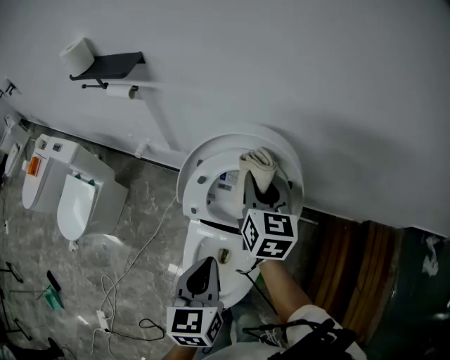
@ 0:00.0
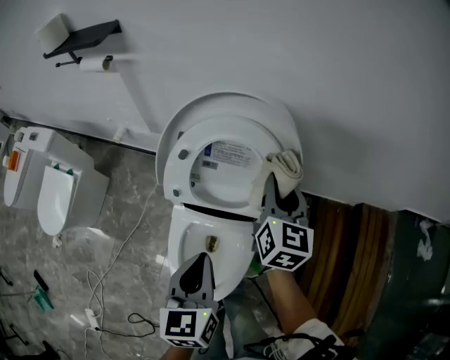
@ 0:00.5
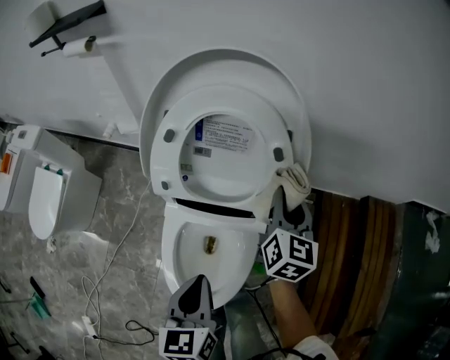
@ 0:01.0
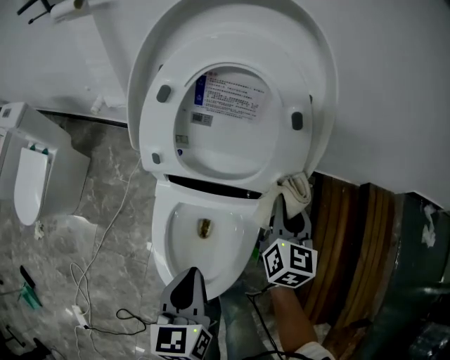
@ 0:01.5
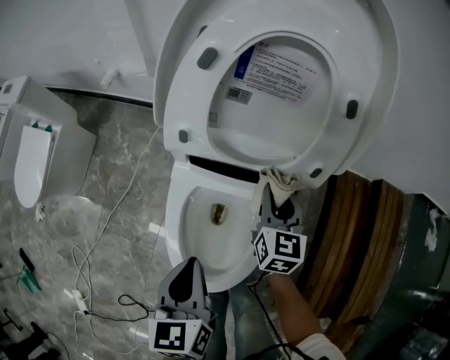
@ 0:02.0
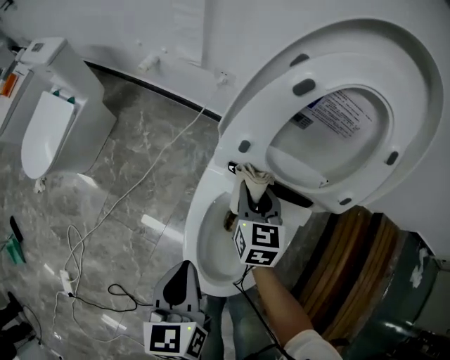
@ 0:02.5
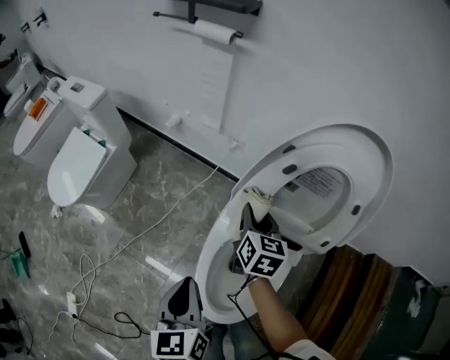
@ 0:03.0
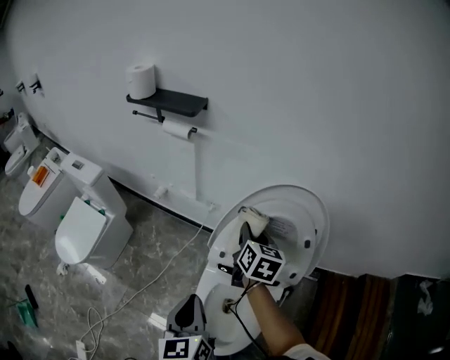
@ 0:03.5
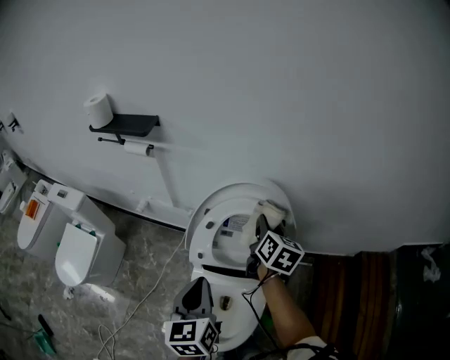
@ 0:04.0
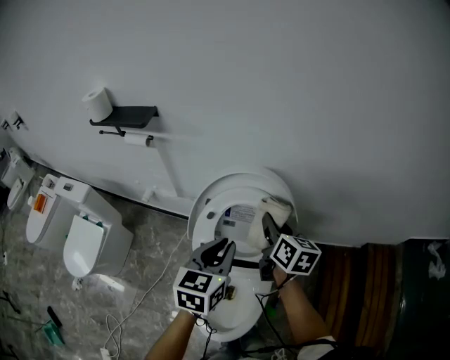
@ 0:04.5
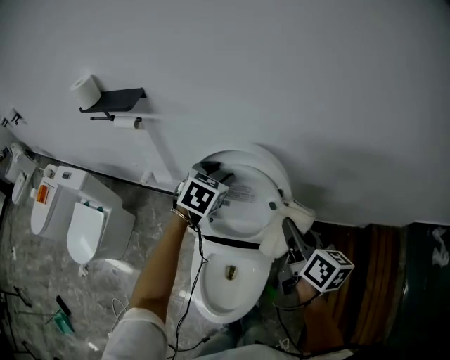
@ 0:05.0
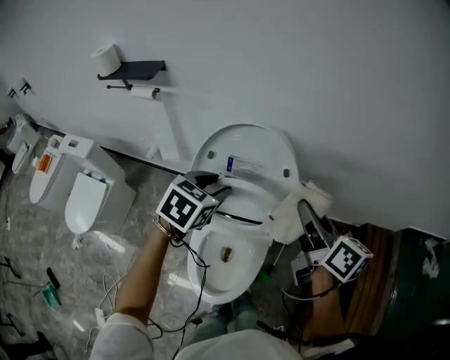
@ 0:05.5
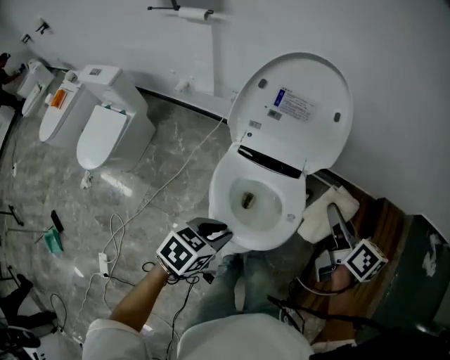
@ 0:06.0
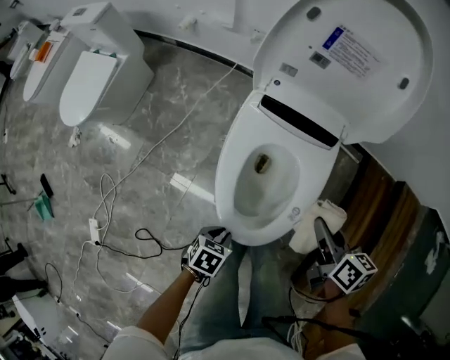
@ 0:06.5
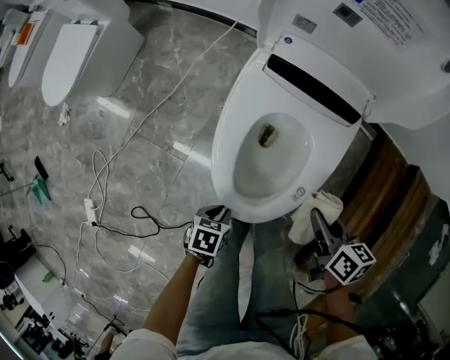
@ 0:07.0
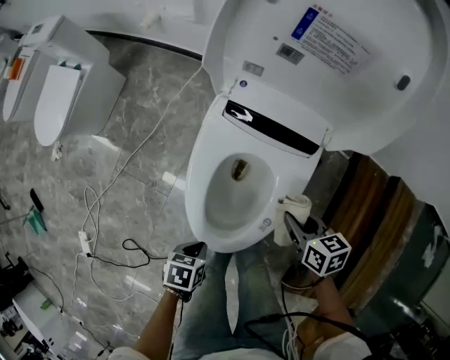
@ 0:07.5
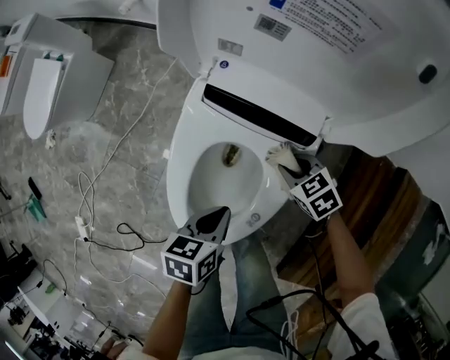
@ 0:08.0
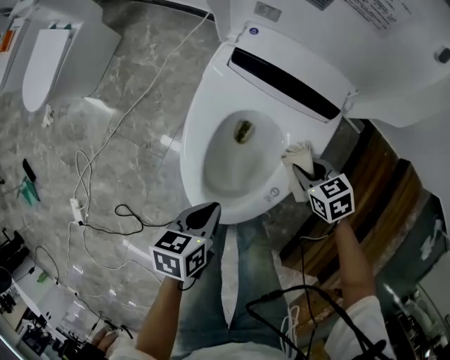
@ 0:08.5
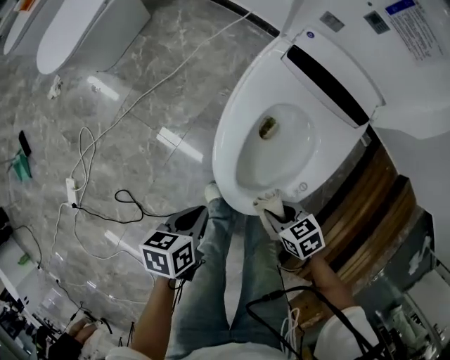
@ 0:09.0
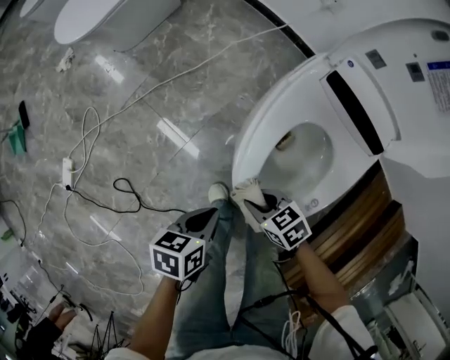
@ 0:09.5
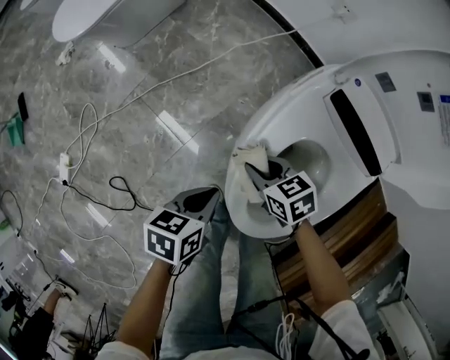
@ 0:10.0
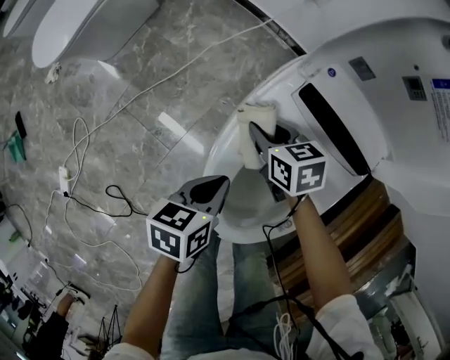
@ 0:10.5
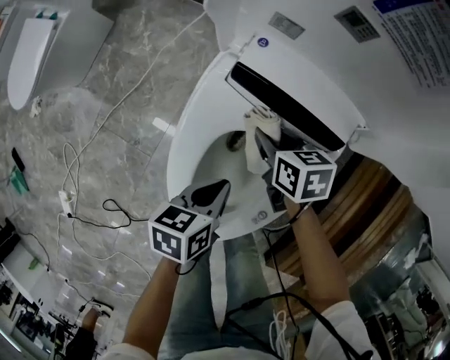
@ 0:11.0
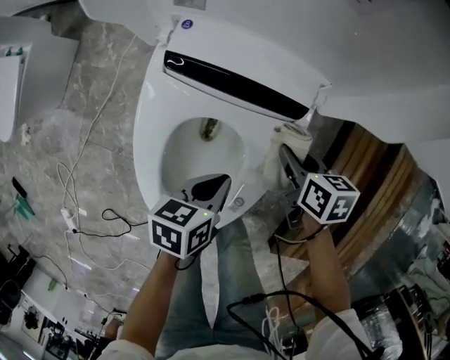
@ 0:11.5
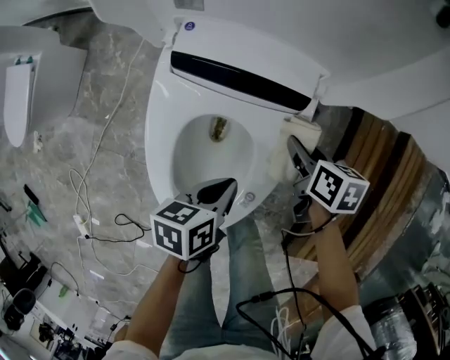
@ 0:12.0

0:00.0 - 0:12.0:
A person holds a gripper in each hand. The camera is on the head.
0:00.0 - 0:02.0: Both grippers travel together downward and backward, roughly 30 cm.
0:02.0 - 0:04.0: Both grippers move upward and forward, some 30 cm. The right gripper rotates approximately 30 degrees.
0:04.0 - 0:06.0: The right gripper moves backward, roughly 25 cm, and rotates some 30 degrees; the left gripper travels backward and downward by roughly 25 cm, points its fingers approximately 30 degrees further downward, and opens.
0:06.0 - 0:08.0: The left gripper moves downward, approximately 25 cm, turns by roughly 40 degrees, and closes its fingers. Meanwhile the right gripper is displaced downward by roughly 40 cm, and tilts its fingers about 40 degrees downward.
0:08.0 - 0:10.0: The left gripper ends up about 25 cm from where it was. Meanwhile the right gripper shifts by roughly 30 cm.
0:10.0 - 0:12.0: The right gripper ends up some 35 cm from where it was, and twists about 50 degrees clockwise, seen from behind. The left gripper shifts by roughly 25 cm, and swivels roughly 20 degrees.

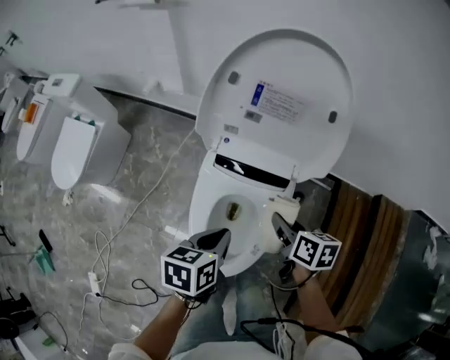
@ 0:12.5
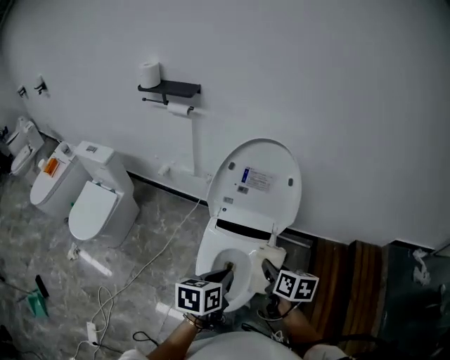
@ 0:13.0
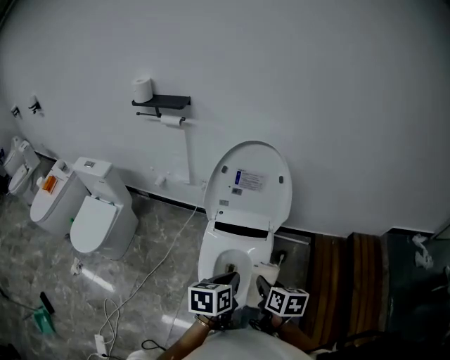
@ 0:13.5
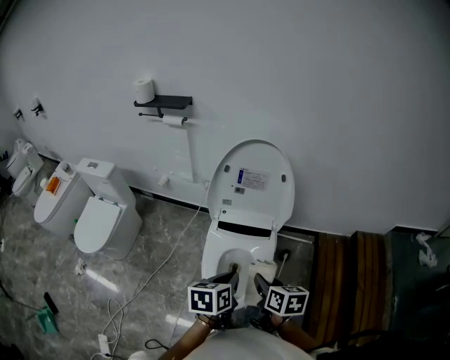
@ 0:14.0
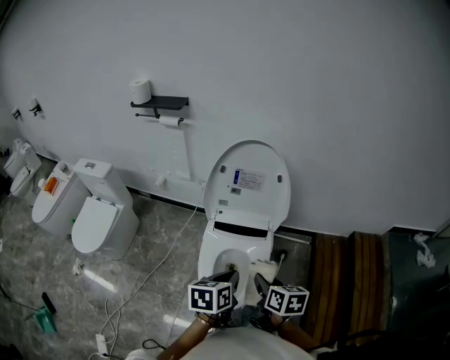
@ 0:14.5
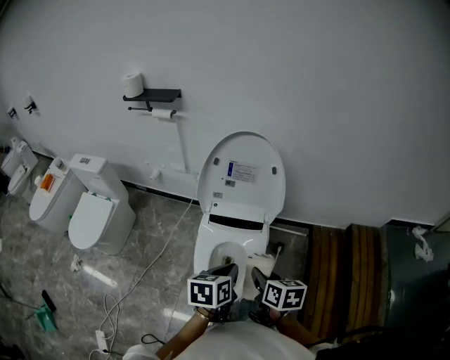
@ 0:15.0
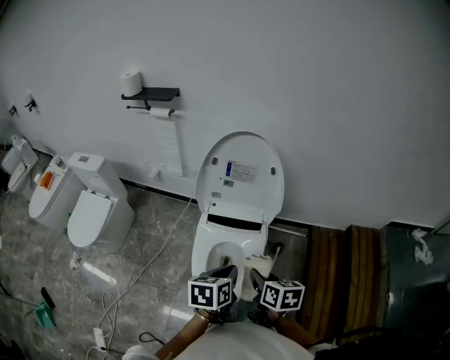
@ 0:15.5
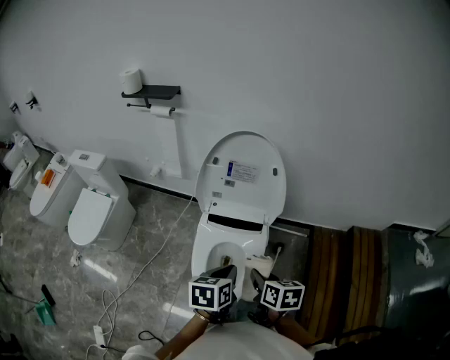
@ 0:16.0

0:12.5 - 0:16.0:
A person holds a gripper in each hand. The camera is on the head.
0:12.5 - 0:14.5: The left gripper moves upward and backward, approximately 20 cm, while the right gripper travels backward and upward by about 25 cm.
0:14.5 - 0:16.0: There are only small adjustments of the grippers.

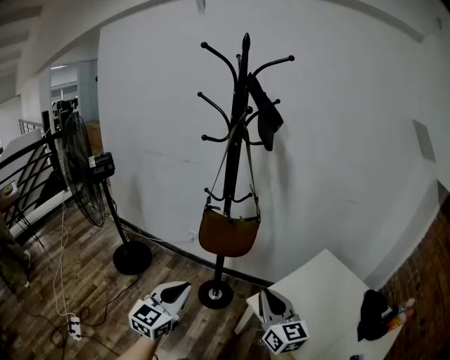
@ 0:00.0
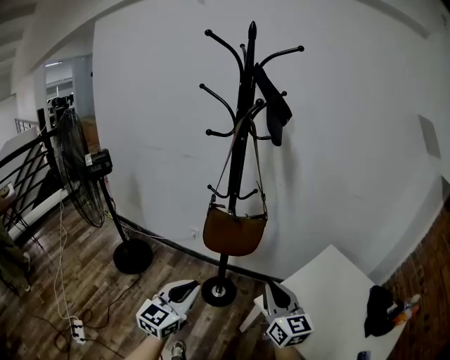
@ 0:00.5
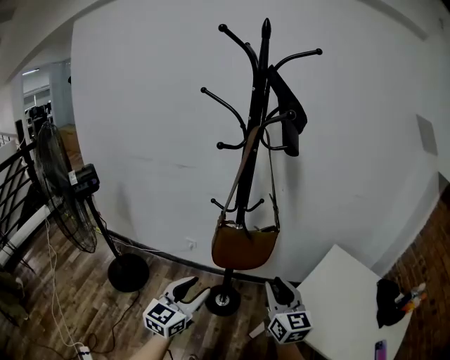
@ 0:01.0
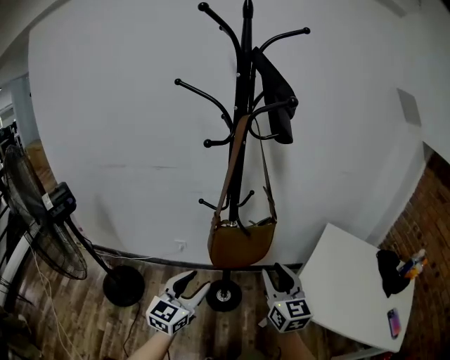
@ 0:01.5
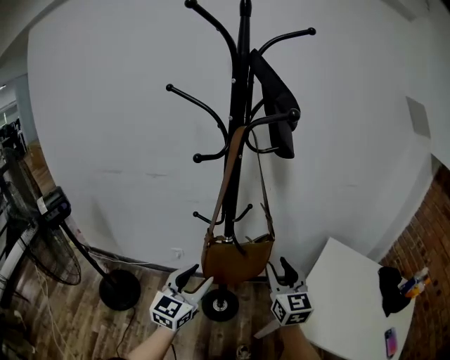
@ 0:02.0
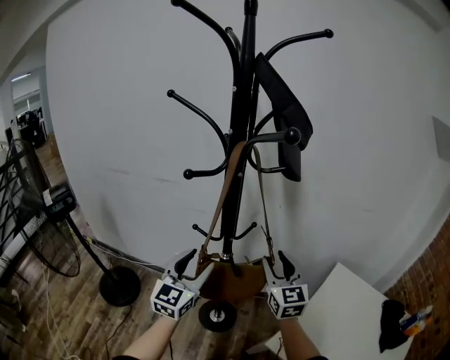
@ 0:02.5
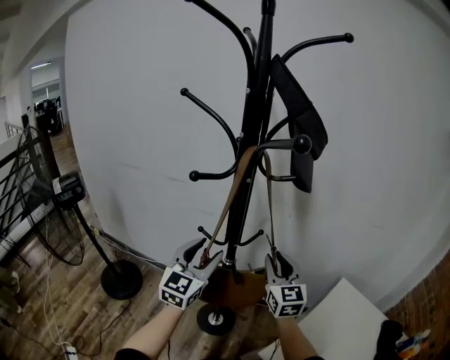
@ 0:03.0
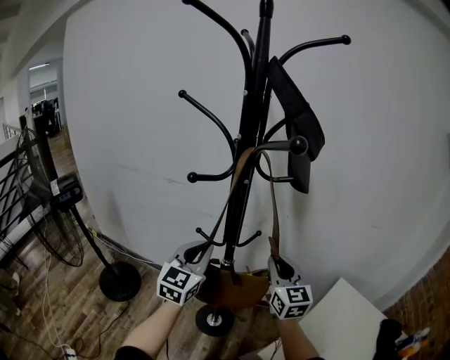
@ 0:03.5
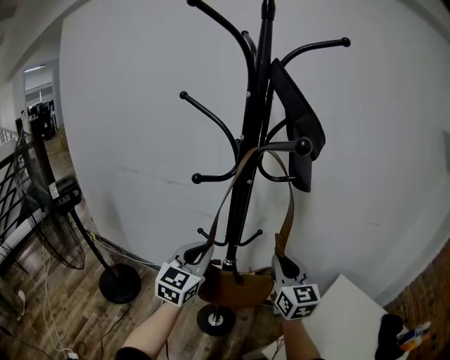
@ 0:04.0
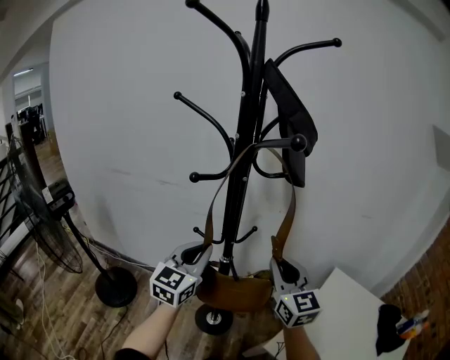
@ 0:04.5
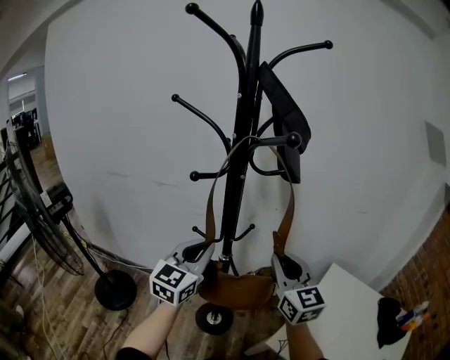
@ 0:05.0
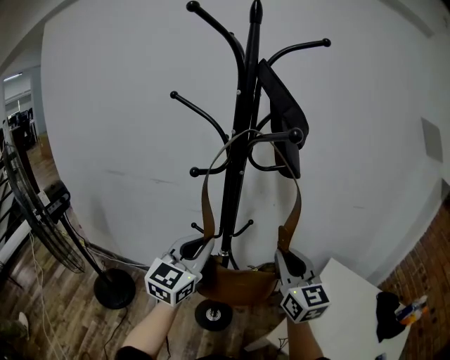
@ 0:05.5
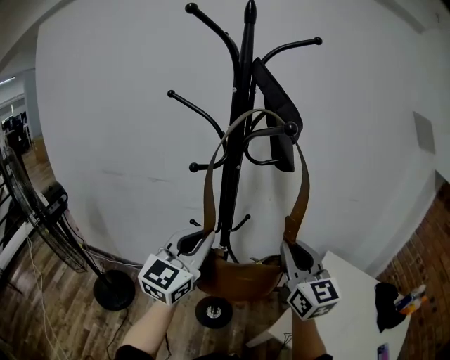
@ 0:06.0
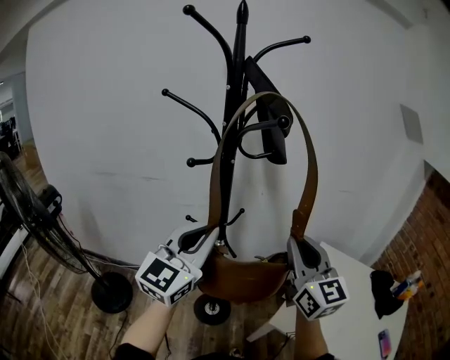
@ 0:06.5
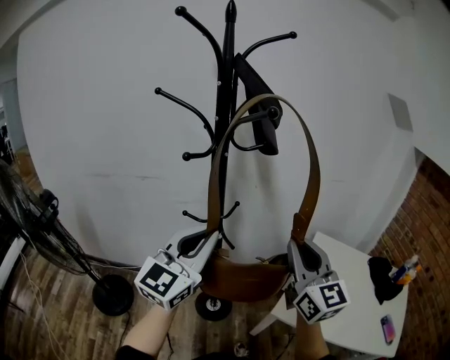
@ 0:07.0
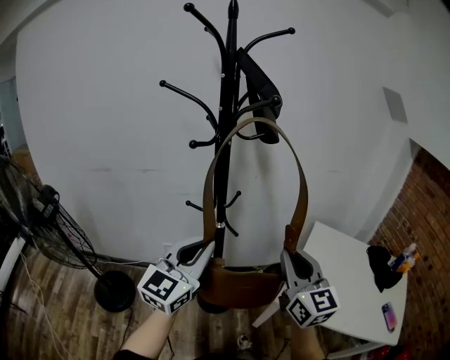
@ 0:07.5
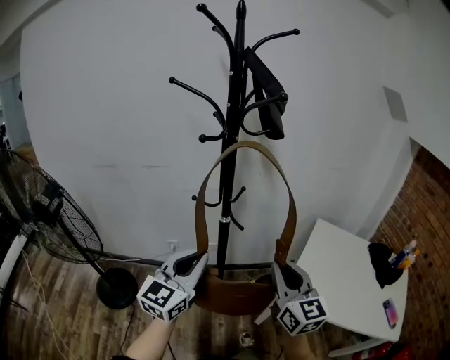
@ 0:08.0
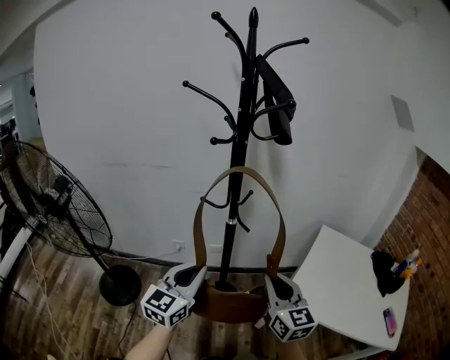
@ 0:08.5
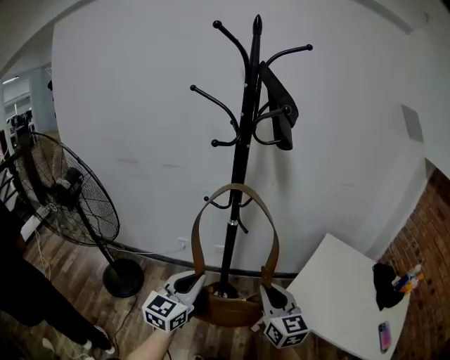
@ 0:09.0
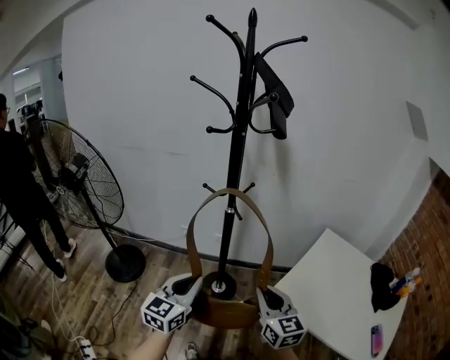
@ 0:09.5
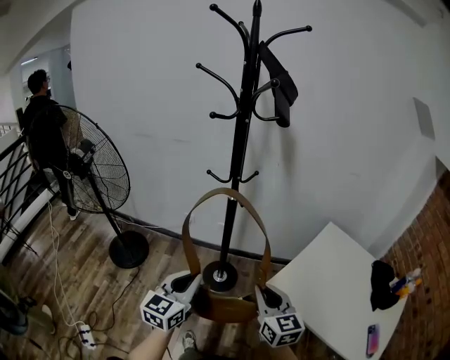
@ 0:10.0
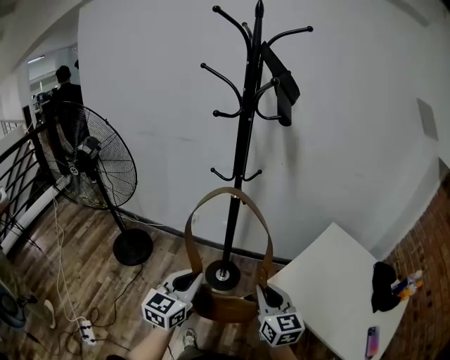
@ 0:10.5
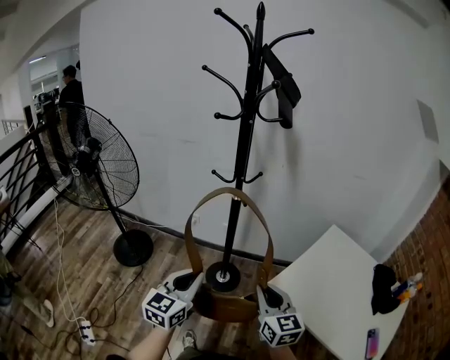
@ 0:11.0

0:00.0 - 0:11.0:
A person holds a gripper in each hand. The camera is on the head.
0:00.0 - 0:02.0: Both grippers travel together forward and to the left, about 25 cm. The right gripper rotates about 30 degrees, and opens up; the left gripper opens.
0:02.0 - 0:03.5: The right gripper shifts about 15 cm forward, and closes its fingers; the left gripper shifts some 15 cm forward and upward, and closes.
0:03.5 - 0:05.5: The right gripper moves backward and upward, about 15 cm. The left gripper is displaced upward and backward by some 10 cm.
0:05.5 - 0:07.5: Both grippers travel together backward, about 15 cm.
0:07.5 - 0:09.0: The grippers both shift downward and backward by some 15 cm.
0:09.0 - 0:11.0: The left gripper moves backward and to the right, approximately 10 cm. The right gripper heads backward, to the right and downward, covering roughly 10 cm.
